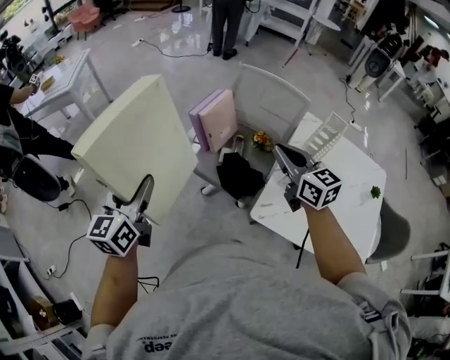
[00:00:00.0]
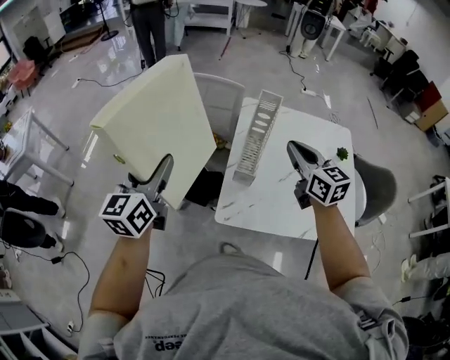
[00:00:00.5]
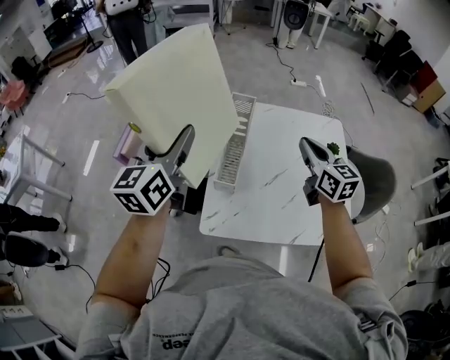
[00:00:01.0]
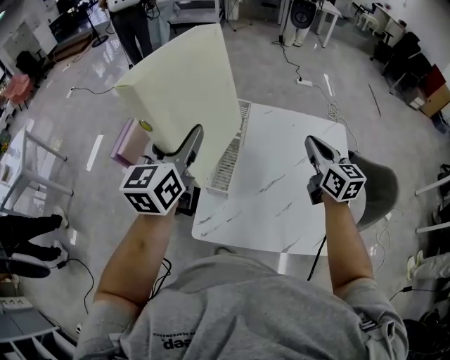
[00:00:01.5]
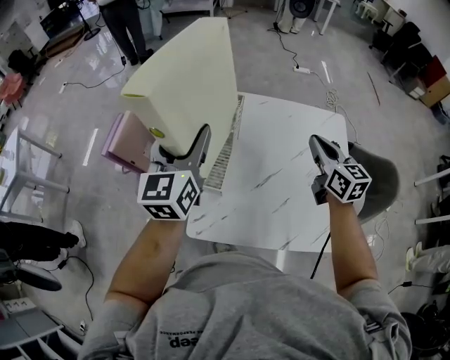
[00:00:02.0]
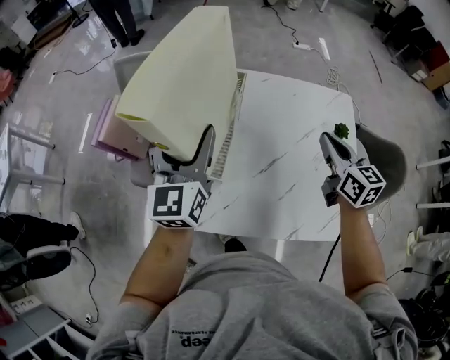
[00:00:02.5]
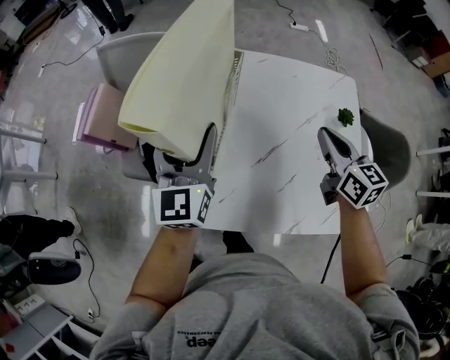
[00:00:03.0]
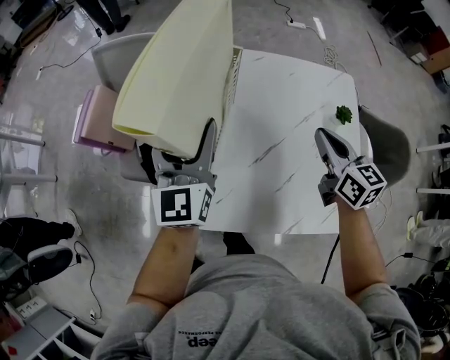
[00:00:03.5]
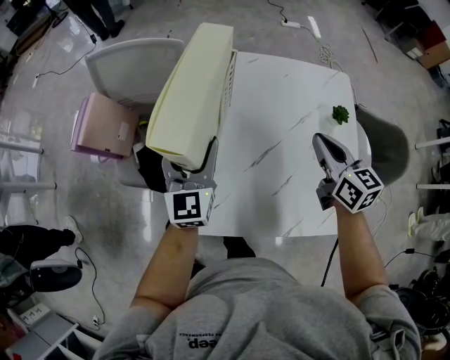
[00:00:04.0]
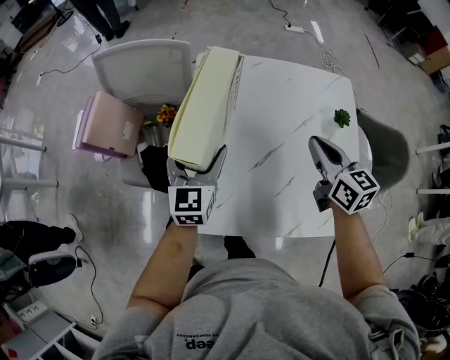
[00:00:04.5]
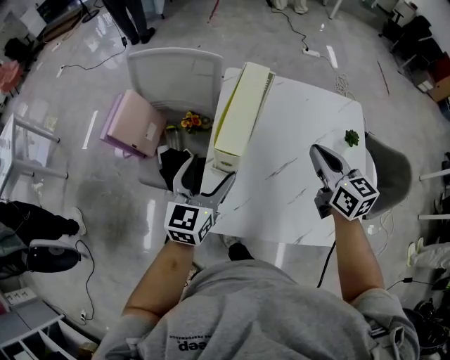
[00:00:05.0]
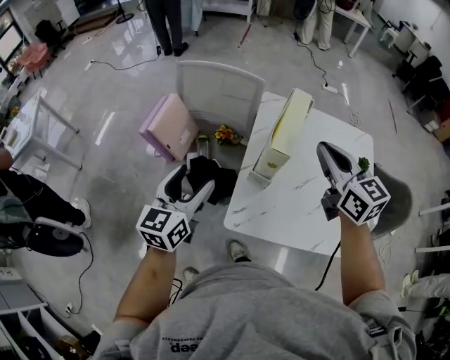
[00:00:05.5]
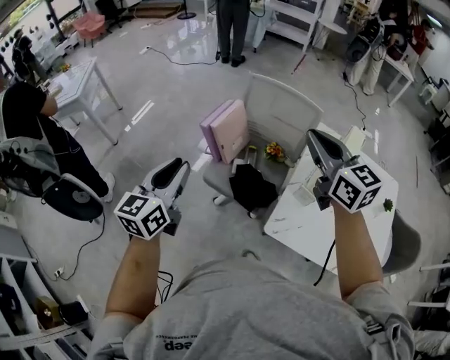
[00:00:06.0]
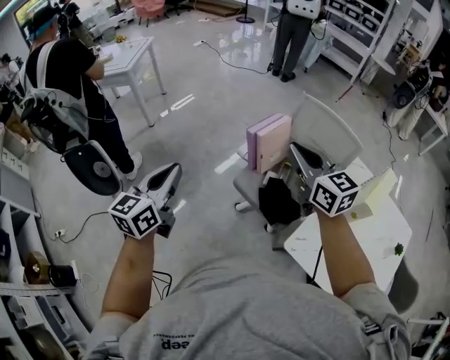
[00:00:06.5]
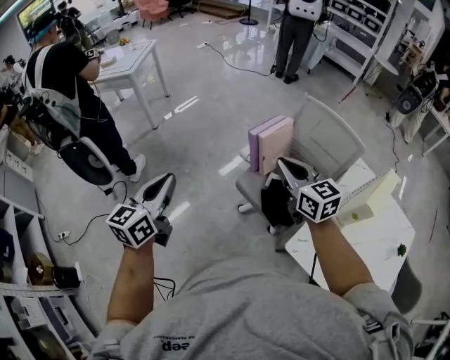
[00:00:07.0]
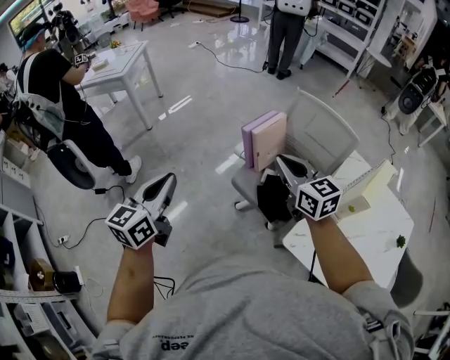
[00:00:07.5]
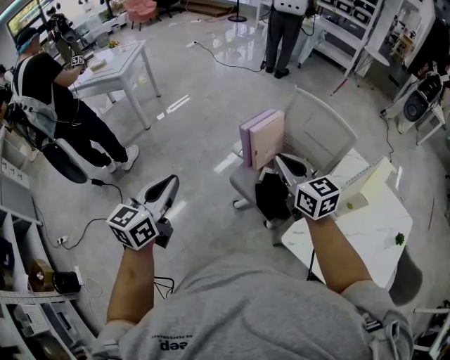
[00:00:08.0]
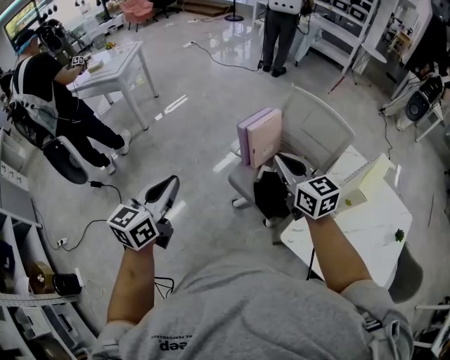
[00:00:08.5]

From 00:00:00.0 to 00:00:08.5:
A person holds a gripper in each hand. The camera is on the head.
From 00:00:00.0 to 00:00:02.0: The two grippers travel together, some 50 cm. The left gripper swivels about 30 degrees. The right gripper turns by some 40 degrees.
From 00:00:02.0 to 00:00:04.0: The left gripper travels downward by approximately 20 cm. The right gripper goes roughly 10 cm downward.
From 00:00:04.0 to 00:00:06.5: Both grippers are carried approximately 60 cm. The right gripper swivels about 50 degrees. The left gripper changes its angle by some 30 degrees, and closes its fingers.
From 00:00:06.5 to 00:00:08.5: The right gripper travels downward by about 5 cm.

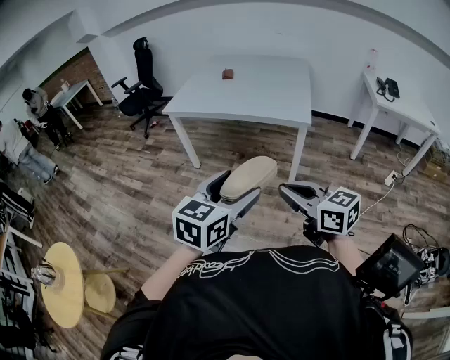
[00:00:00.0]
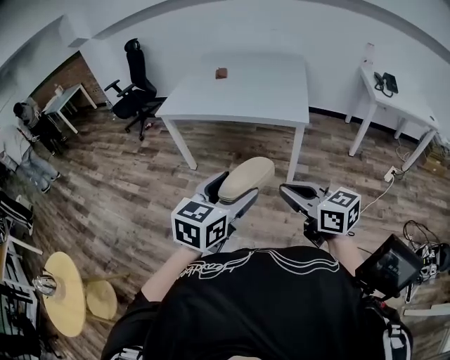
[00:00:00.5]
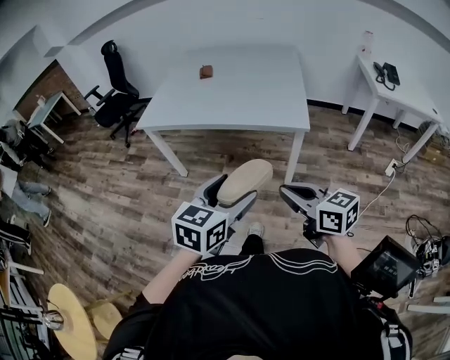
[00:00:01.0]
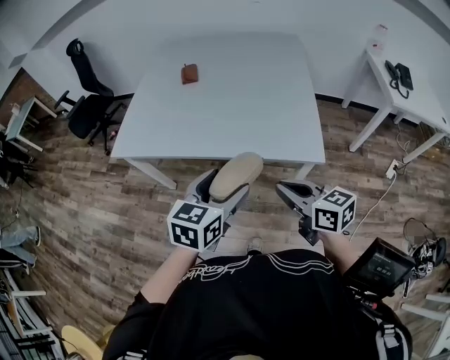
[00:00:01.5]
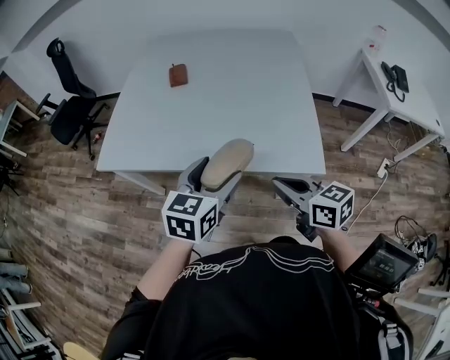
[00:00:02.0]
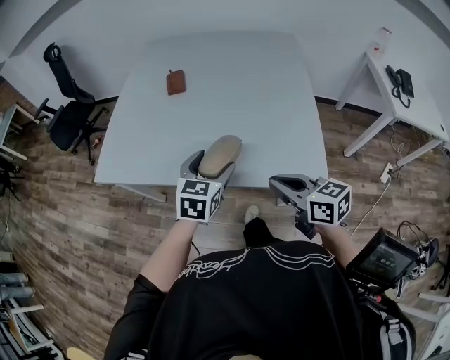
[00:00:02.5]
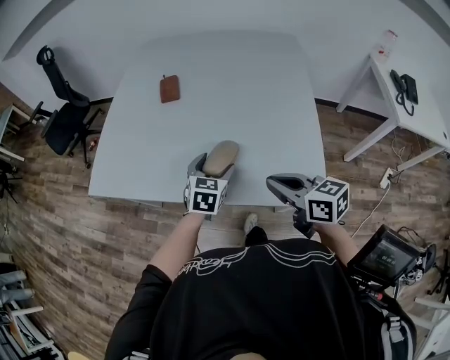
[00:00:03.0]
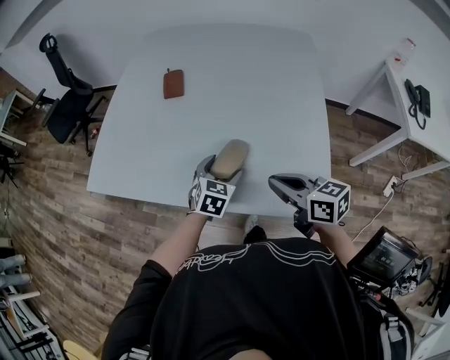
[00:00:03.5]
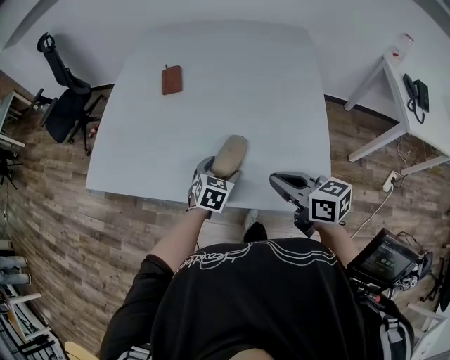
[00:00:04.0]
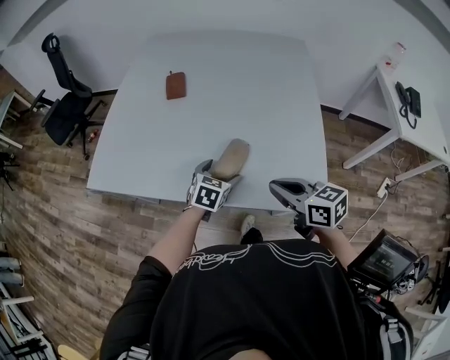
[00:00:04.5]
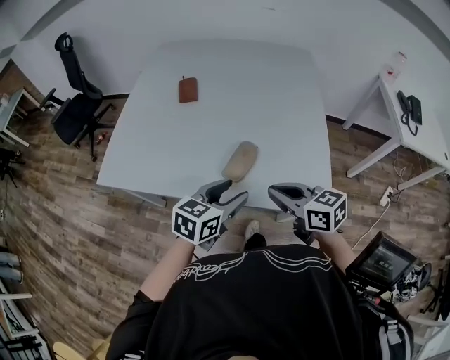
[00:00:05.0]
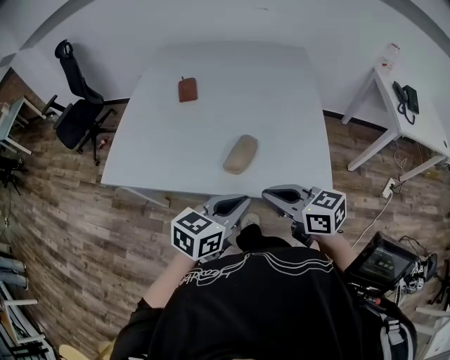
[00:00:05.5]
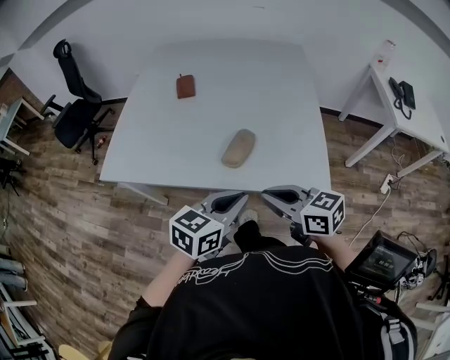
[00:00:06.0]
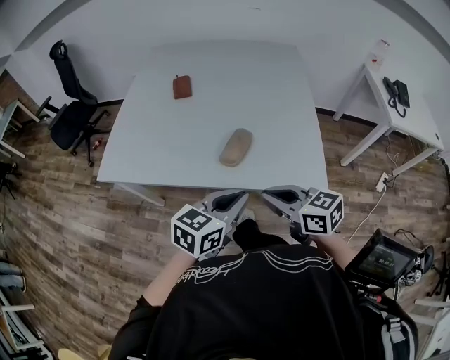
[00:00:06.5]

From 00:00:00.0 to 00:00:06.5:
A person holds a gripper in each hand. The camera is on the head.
From 00:00:00.0 to 00:00:02.0: The two grippers travel together, forward, some 60 cm.
From 00:00:02.0 to 00:00:04.5: The right gripper is displaced forward by roughly 15 cm. The left gripper goes approximately 25 cm downward and forward, and turns by roughly 20 degrees.
From 00:00:04.5 to 00:00:06.5: The right gripper goes some 10 cm backward and to the left. Meanwhile the left gripper moves backward and upward, roughly 25 cm, swivels about 30 degrees, and closes its fingers.

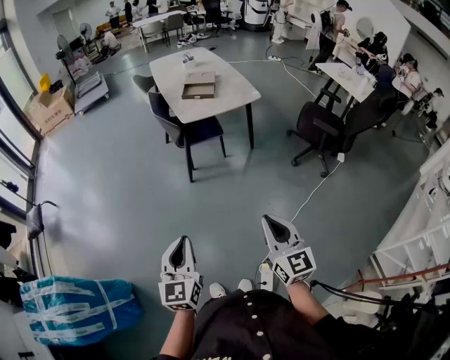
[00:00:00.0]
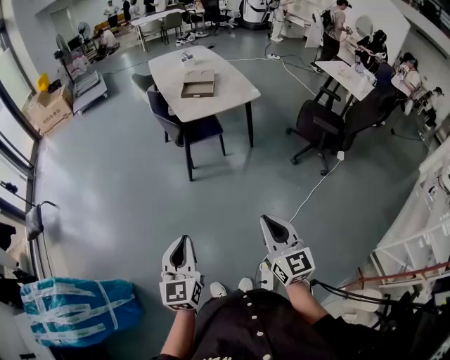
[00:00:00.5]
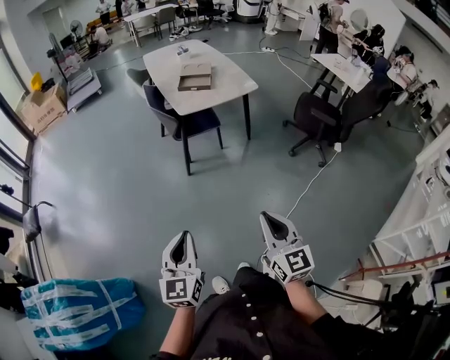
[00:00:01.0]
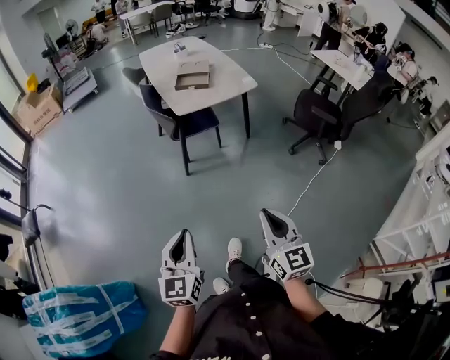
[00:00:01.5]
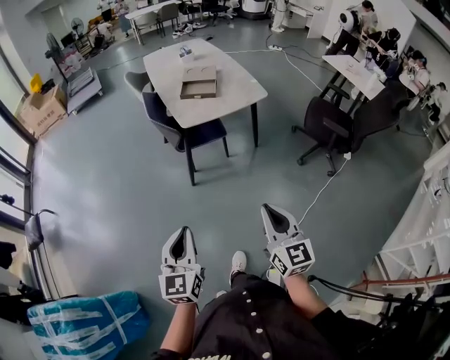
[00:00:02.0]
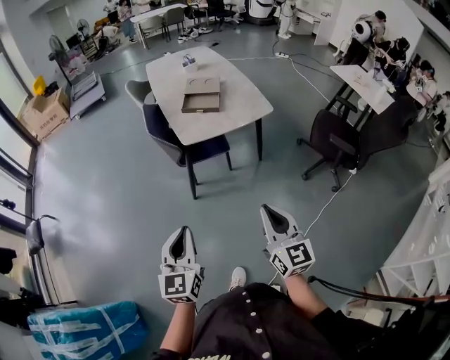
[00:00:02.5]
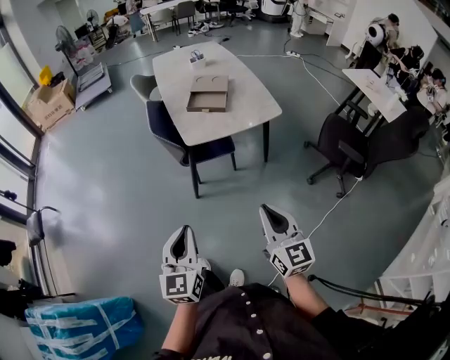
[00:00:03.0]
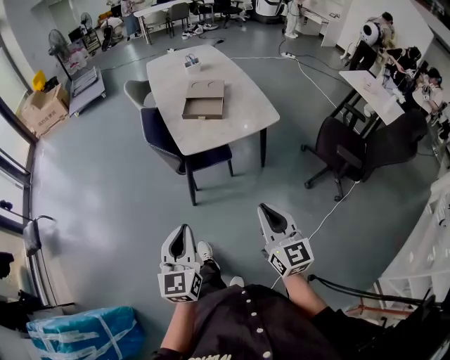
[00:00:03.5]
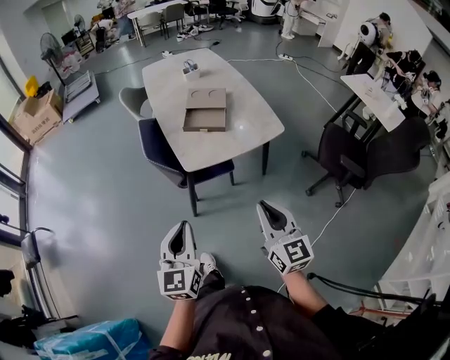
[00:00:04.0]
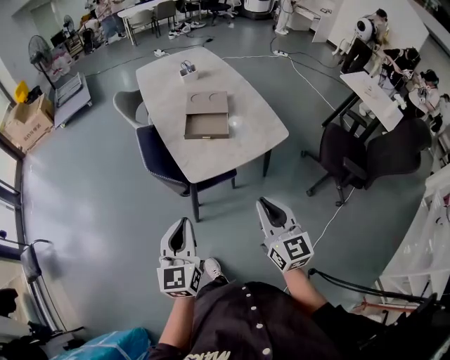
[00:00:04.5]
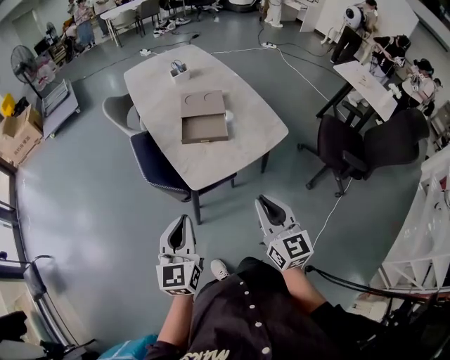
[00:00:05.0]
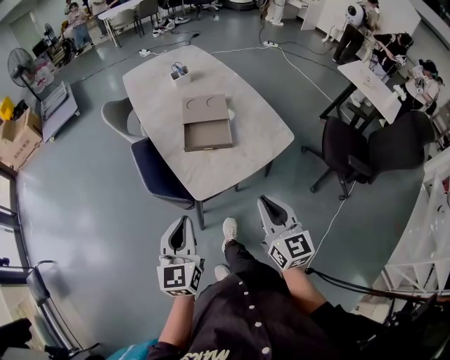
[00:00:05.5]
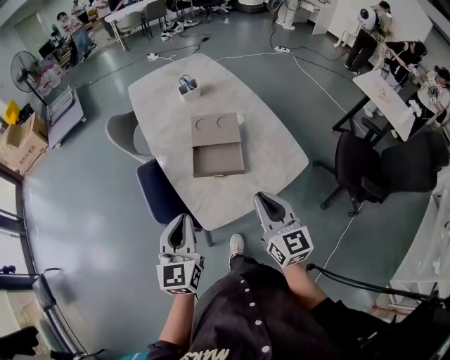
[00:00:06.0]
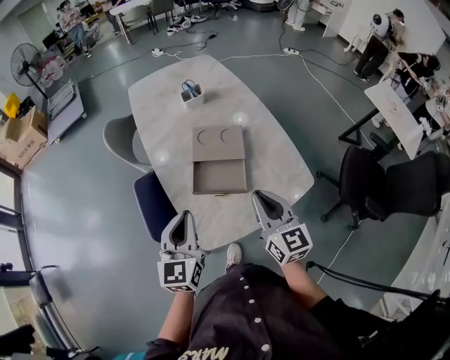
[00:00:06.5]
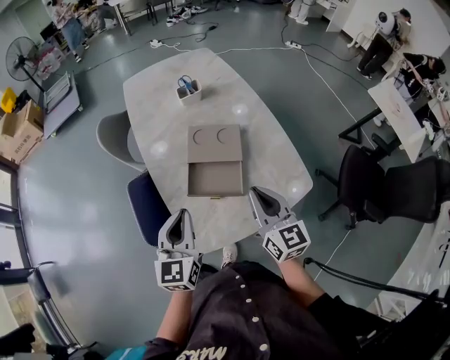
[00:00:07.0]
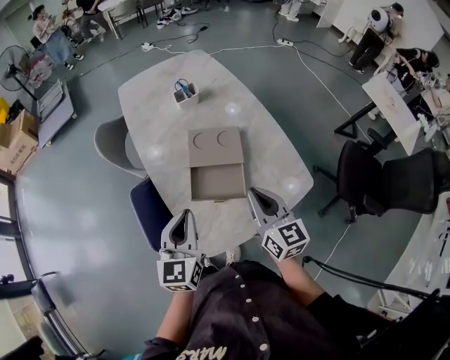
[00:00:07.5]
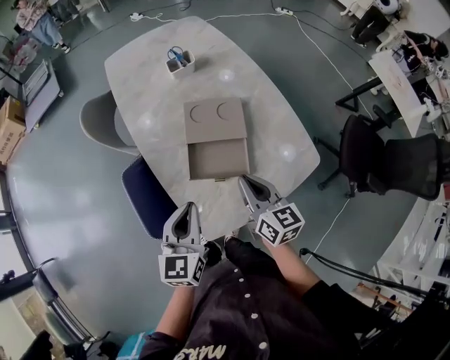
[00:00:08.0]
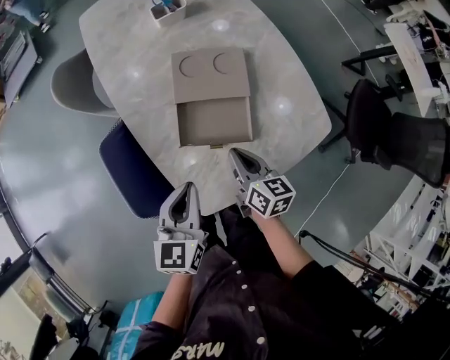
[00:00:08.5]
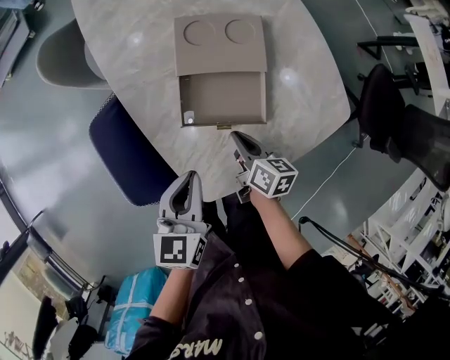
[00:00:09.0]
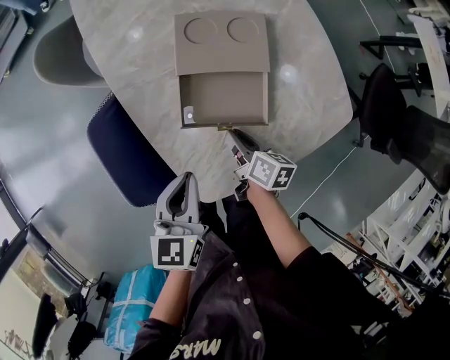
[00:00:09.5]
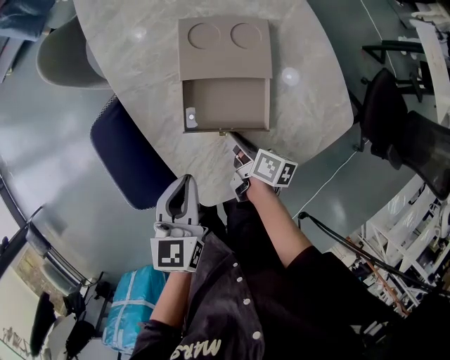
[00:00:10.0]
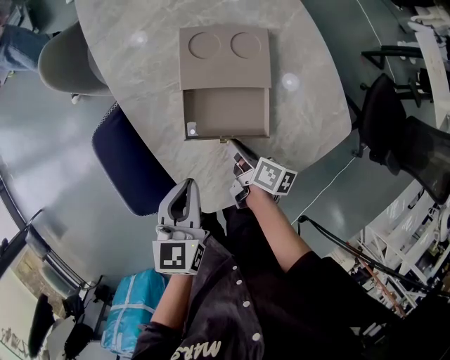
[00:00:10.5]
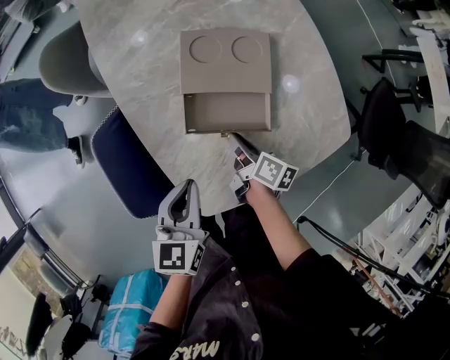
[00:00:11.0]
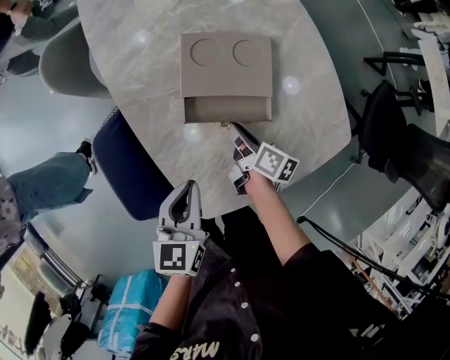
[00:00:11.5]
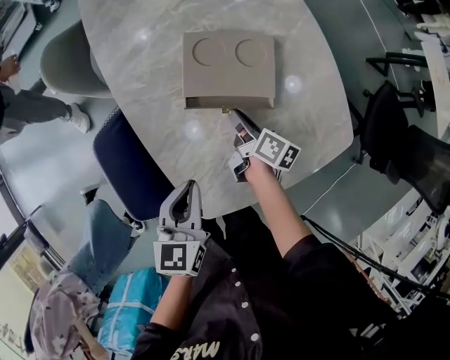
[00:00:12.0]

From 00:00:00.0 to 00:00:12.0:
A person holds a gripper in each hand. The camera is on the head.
From 00:00:00.0 to 00:00:02.0: The two grippers go roughly 15 cm forward.
From 00:00:02.0 to 00:00:04.0: The grippers both shift forward by approximately 30 cm.
From 00:00:04.0 to 00:00:06.0: Both grippers move forward, approximately 35 cm.
From 00:00:06.0 to 00:00:08.0: The left gripper is displaced forward by about 15 cm, while the right gripper heads forward and downward, covering some 20 cm, and swivels roughly 20 degrees.
From 00:00:08.0 to 00:00:10.0: The right gripper moves downward, roughly 25 cm, and twists approximately 50 degrees clockwise, seen from behind. The left gripper goes approximately 10 cm downward.
From 00:00:10.0 to 00:00:12.0: The right gripper heads forward, covering approximately 10 cm.
